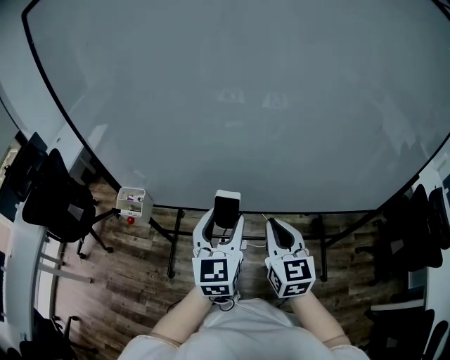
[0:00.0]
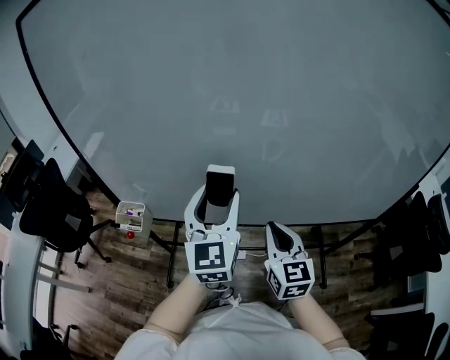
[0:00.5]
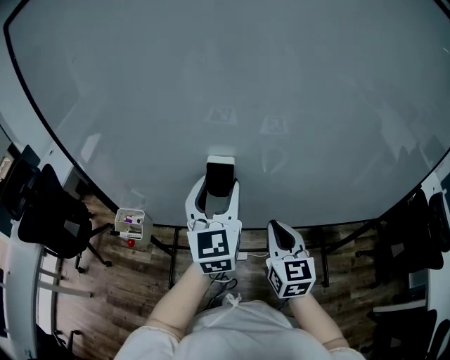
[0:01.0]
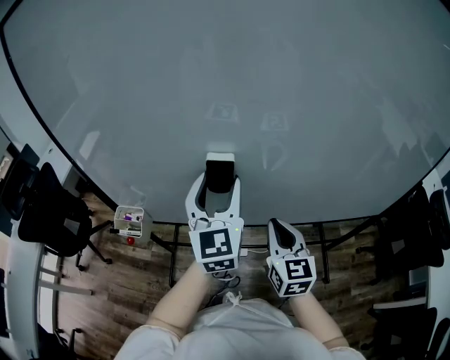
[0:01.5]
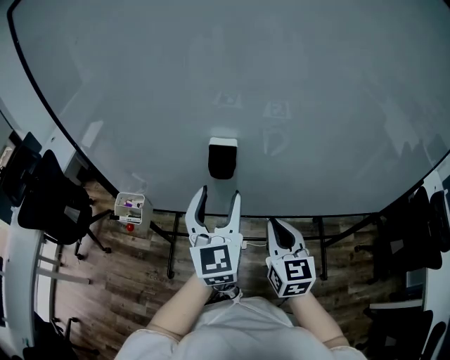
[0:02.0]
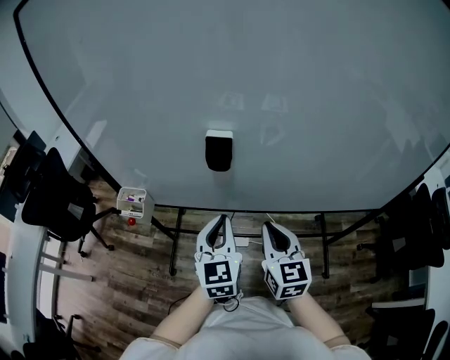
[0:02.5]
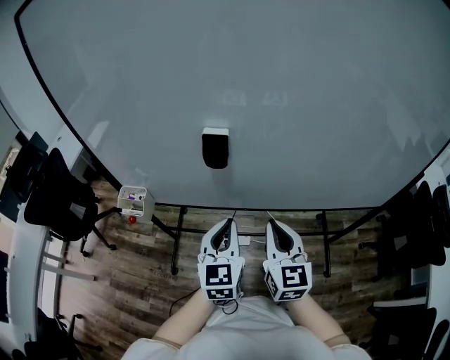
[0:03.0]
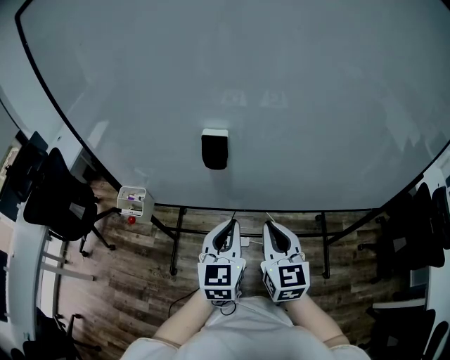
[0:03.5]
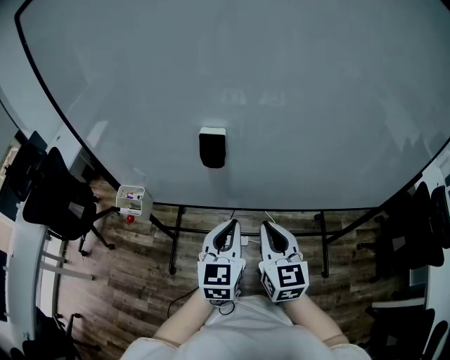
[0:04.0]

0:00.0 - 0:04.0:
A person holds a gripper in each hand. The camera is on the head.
0:00.0 - 0:02.0: The left gripper moves forward, about 5 cm.
0:02.0 - 0:04.0: The left gripper travels downward and backward by approximately 10 cm, and closes its fingers.

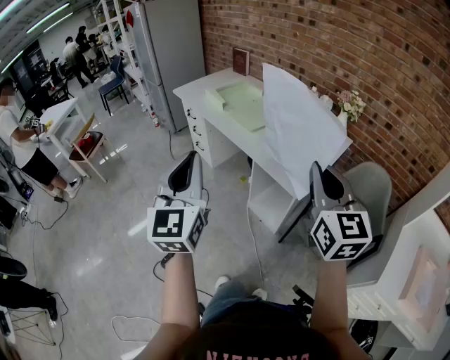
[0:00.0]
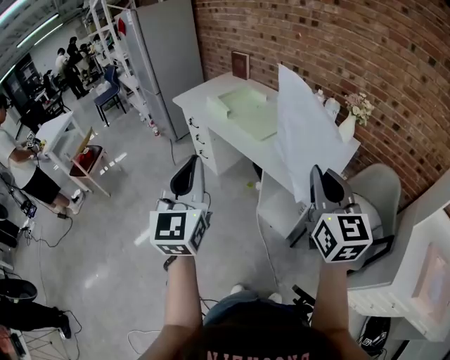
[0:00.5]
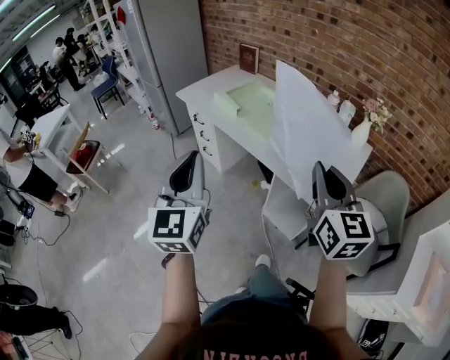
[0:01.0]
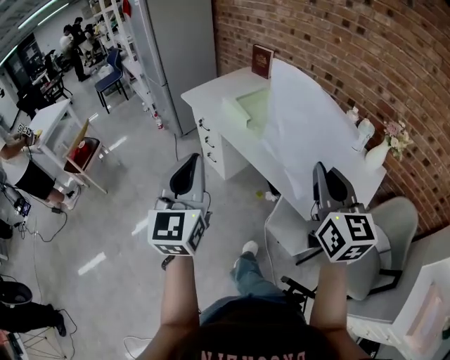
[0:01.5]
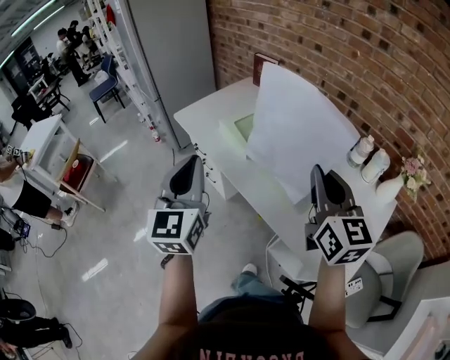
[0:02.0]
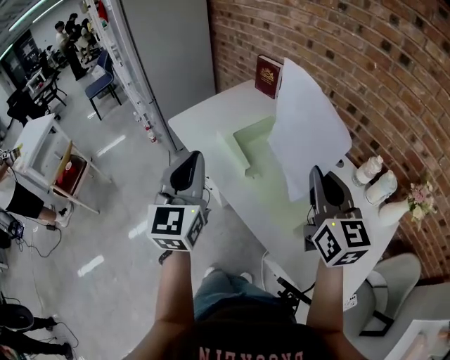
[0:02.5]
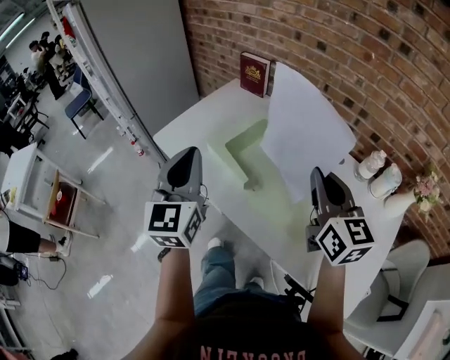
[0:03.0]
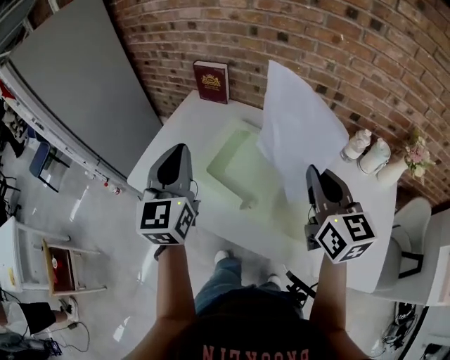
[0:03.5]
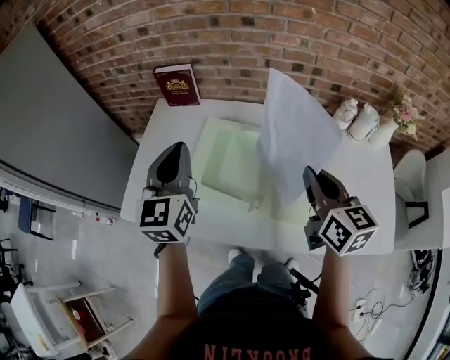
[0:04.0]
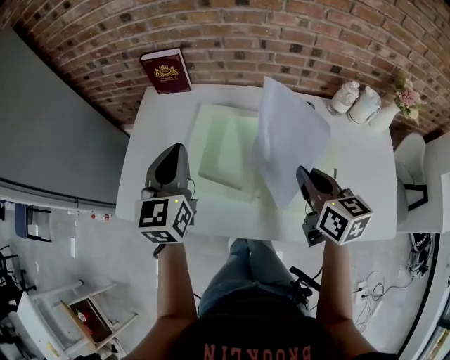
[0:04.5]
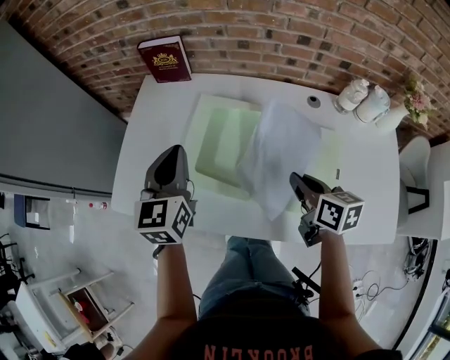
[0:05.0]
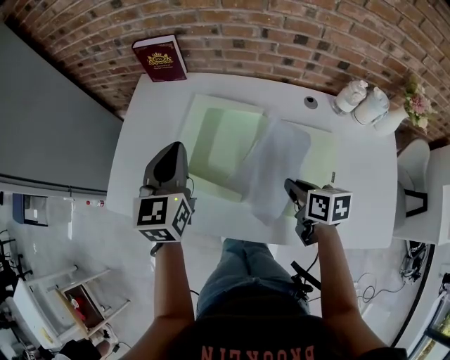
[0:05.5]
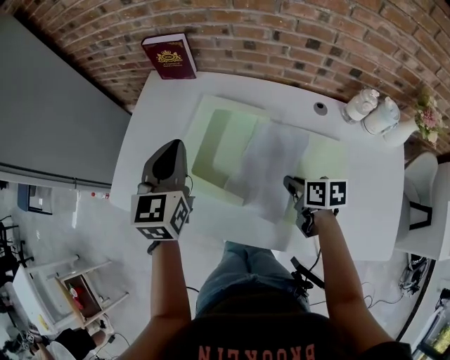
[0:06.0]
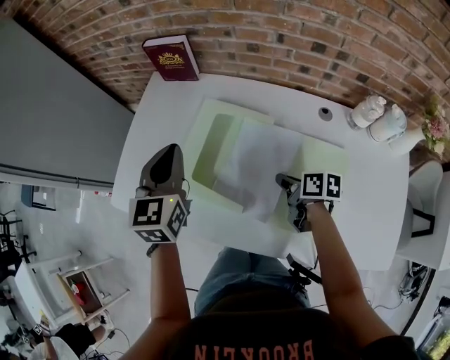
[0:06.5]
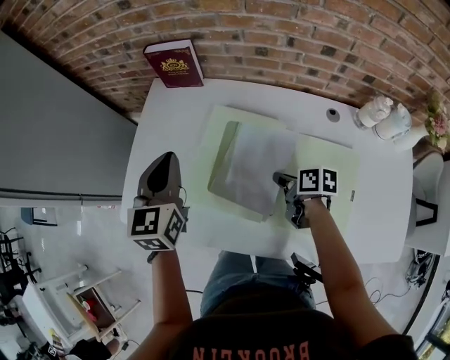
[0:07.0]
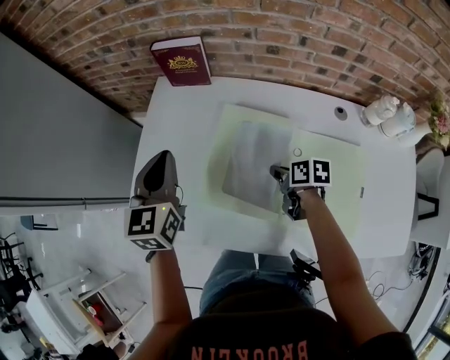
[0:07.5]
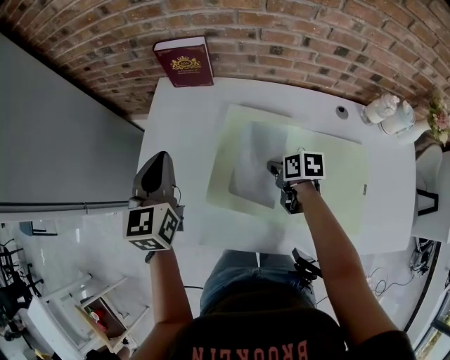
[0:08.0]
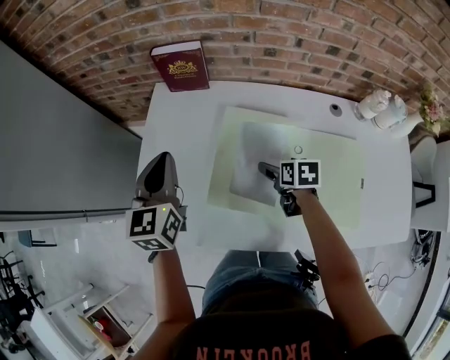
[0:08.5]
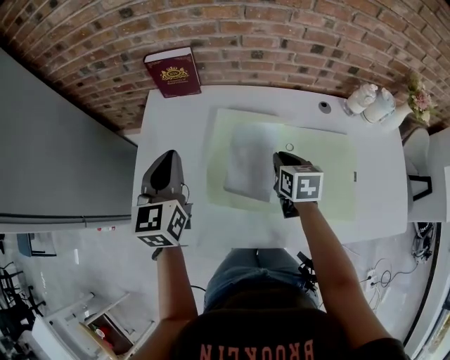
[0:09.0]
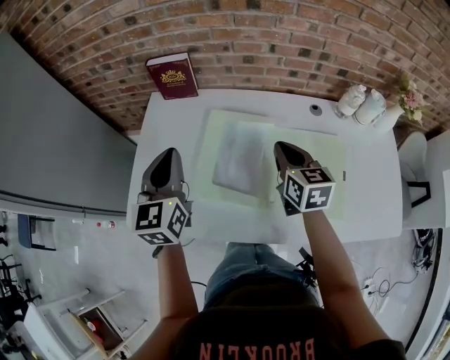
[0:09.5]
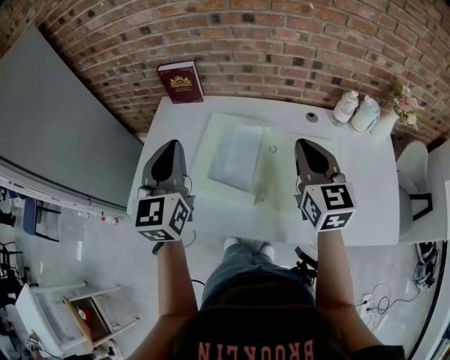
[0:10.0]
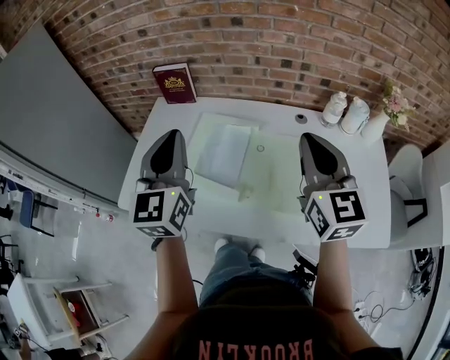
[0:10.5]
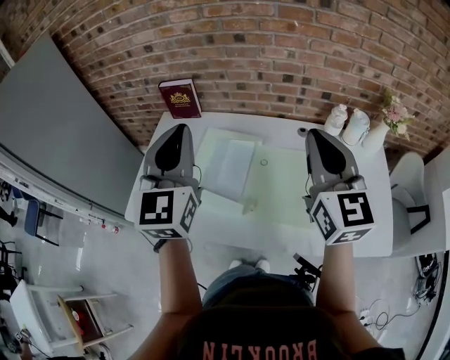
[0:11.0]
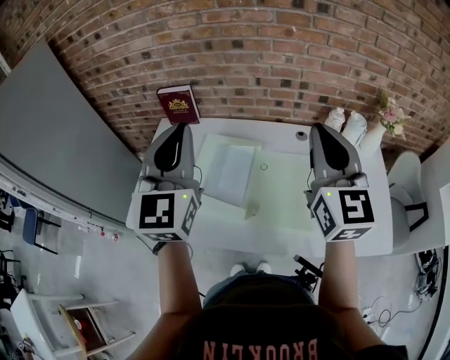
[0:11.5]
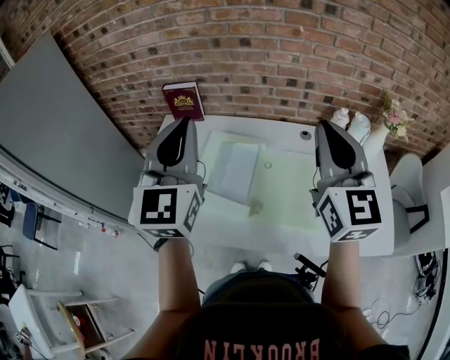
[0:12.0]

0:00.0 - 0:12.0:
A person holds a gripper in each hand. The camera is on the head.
0:00.0 - 0:02.0: Both grippers are carried forward, some 50 cm.
0:02.0 - 0:04.0: The left gripper shifts by some 40 cm, and swivels roughly 40 degrees. The right gripper moves roughly 25 cm, and turns by about 40 degrees.
0:04.0 - 0:06.0: The right gripper heads downward, covering some 25 cm, and tips its fingers downward by about 30 degrees; the left gripper is displaced downward by approximately 10 cm.
0:06.0 - 0:08.0: The left gripper moves to the left and forward, some 15 cm. Meanwhile the right gripper travels forward, to the left and downward by some 15 cm.
0:08.0 - 0:10.0: The left gripper shifts some 20 cm upward, backward and to the right; the right gripper goes approximately 30 cm upward, tips its fingers upward by approximately 40 degrees, and opens, then closes again.
0:10.0 - 0:12.0: The left gripper moves upward and to the right, some 15 cm; the right gripper goes some 15 cm upward.

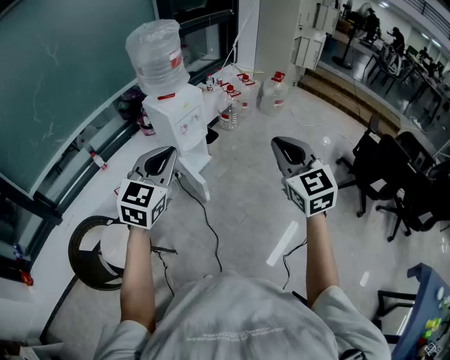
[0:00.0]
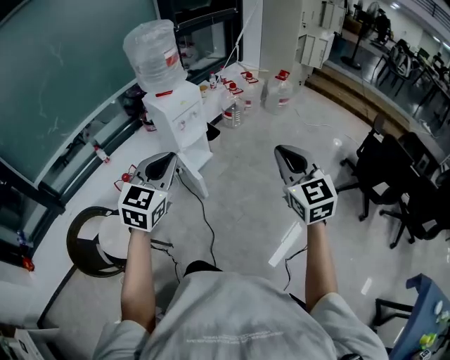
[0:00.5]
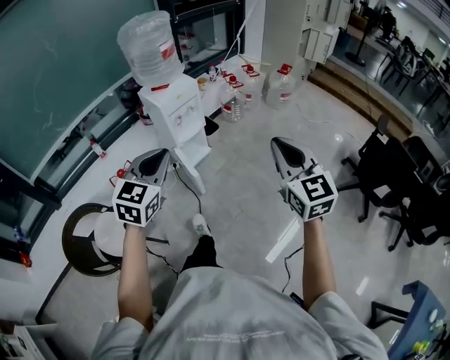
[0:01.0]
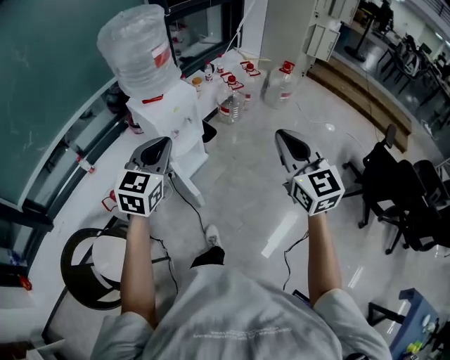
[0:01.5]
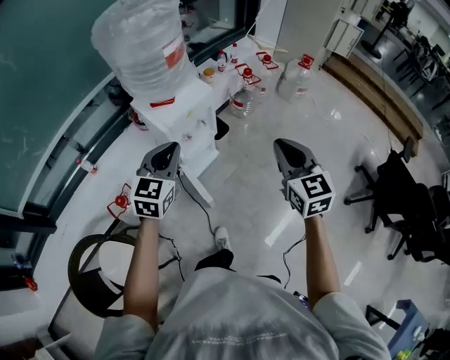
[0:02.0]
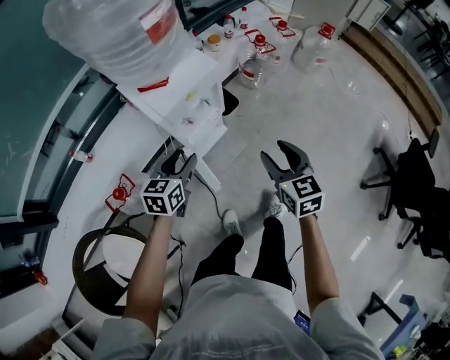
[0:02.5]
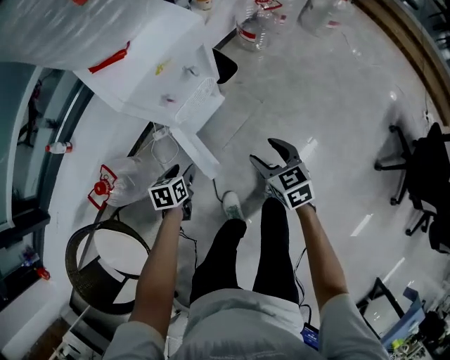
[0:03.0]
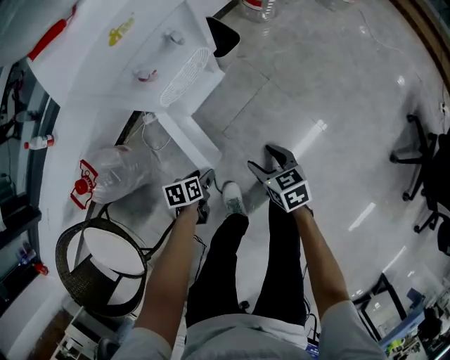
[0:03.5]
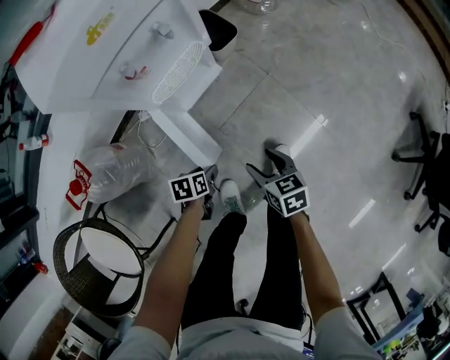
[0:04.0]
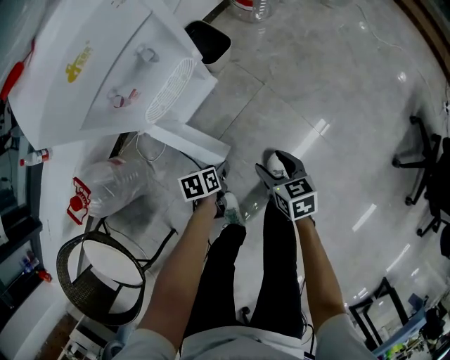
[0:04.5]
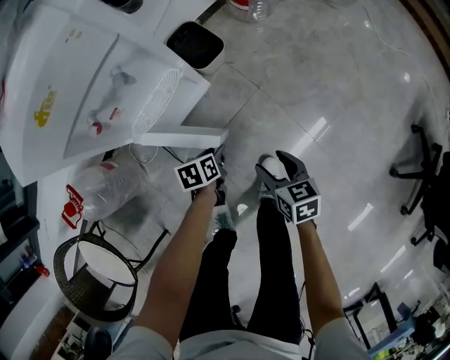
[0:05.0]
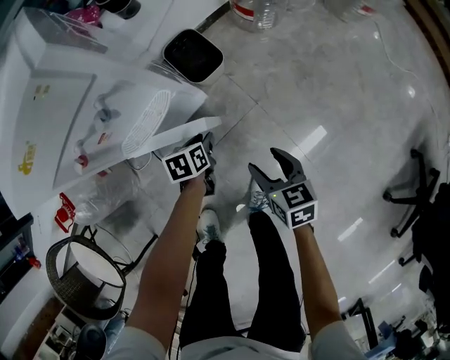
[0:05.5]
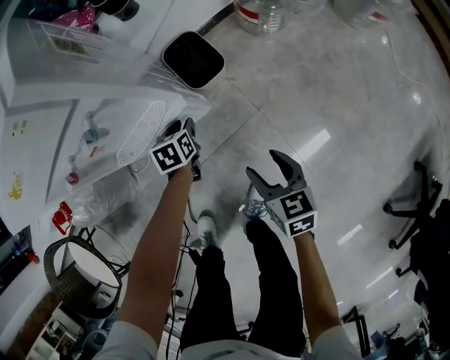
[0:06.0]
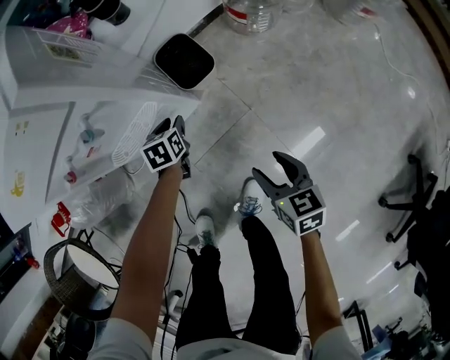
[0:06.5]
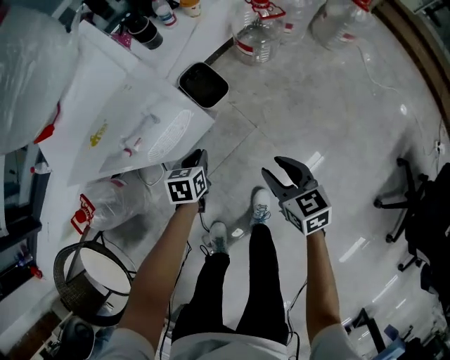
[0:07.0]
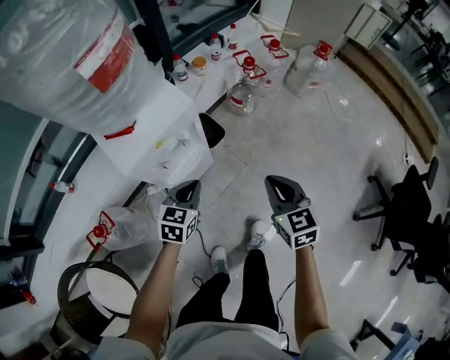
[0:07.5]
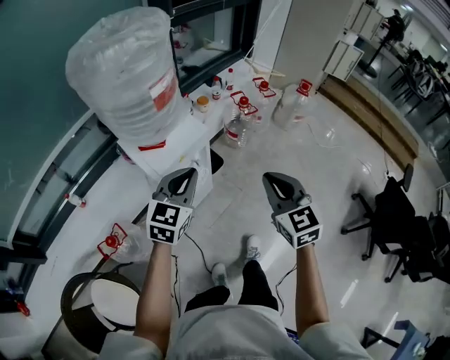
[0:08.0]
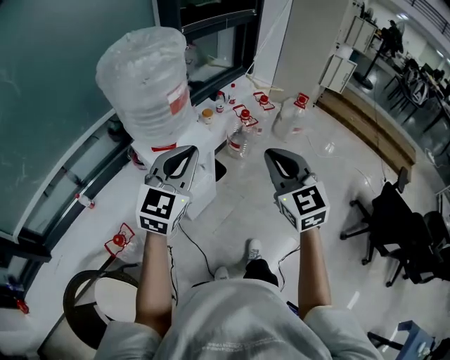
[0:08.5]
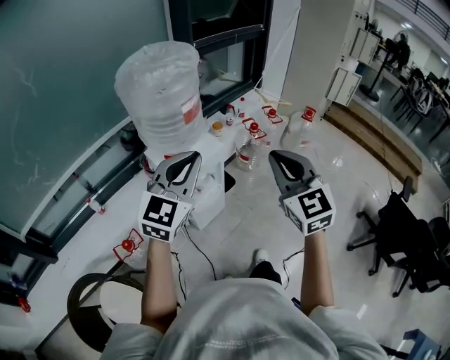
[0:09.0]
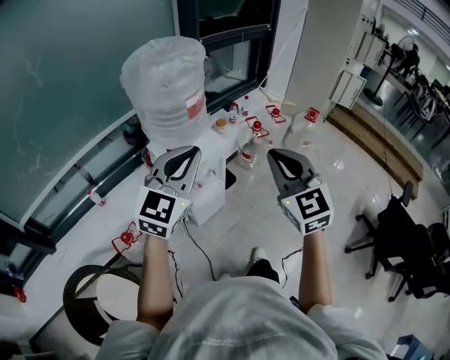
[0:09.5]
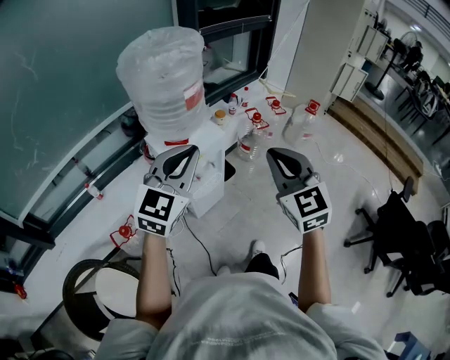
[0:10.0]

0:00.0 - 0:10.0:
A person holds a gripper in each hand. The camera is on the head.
0:00.0 - 0:02.0: The two grippers go approximately 40 cm forward.
0:02.0 - 0:04.0: Both grippers travel together downward, roughly 70 cm. The right gripper tilts its fingers roughly 30 degrees downward, and opens its fingers. Meanwhile the left gripper angles its fingers downward, by some 50 degrees, and opens.
0:04.0 - 0:06.0: The right gripper ends up approximately 25 cm from where it was, while the left gripper moves some 35 cm, and changes its angle by approximately 30 degrees.
0:06.0 - 0:08.0: The grippers both shift upward by approximately 60 cm. The left gripper points its fingers some 40 degrees further upward, and closes. The right gripper turns by approximately 40 degrees, and closes.
0:08.0 - 0:10.0: The right gripper is displaced upward by about 15 cm. The left gripper shifts some 20 cm upward and backward.
